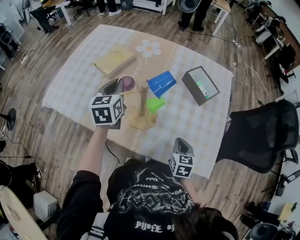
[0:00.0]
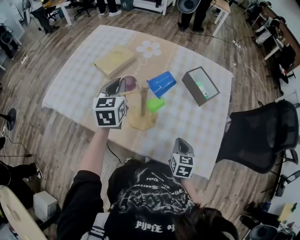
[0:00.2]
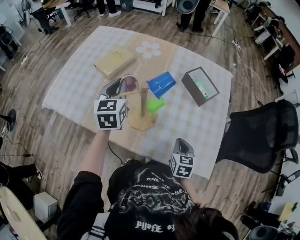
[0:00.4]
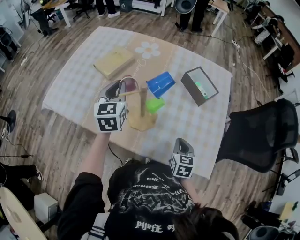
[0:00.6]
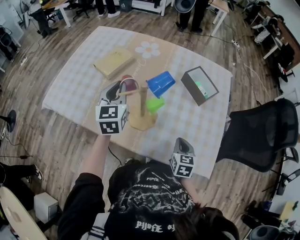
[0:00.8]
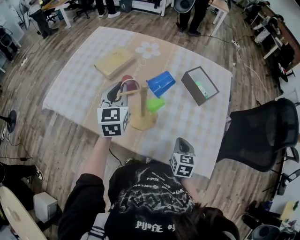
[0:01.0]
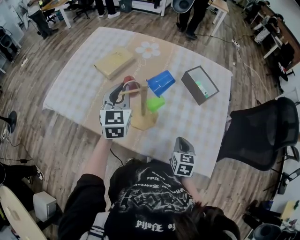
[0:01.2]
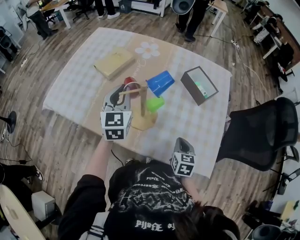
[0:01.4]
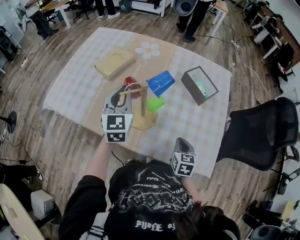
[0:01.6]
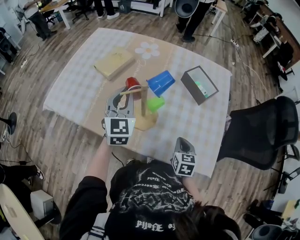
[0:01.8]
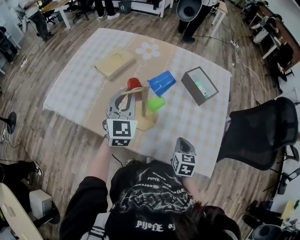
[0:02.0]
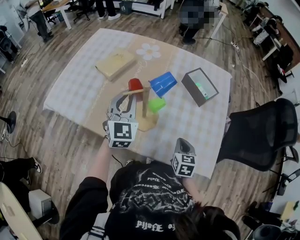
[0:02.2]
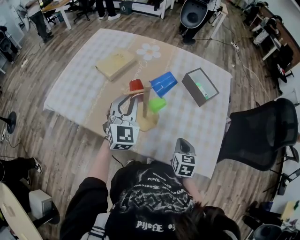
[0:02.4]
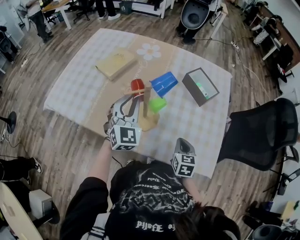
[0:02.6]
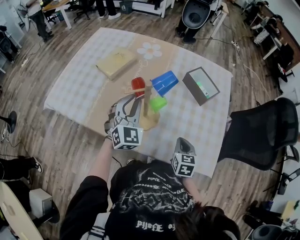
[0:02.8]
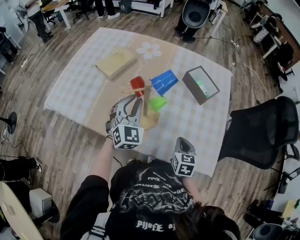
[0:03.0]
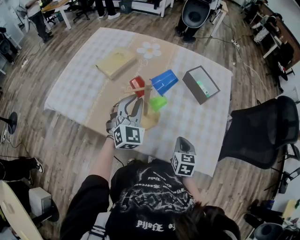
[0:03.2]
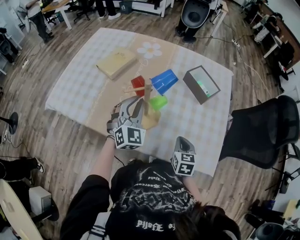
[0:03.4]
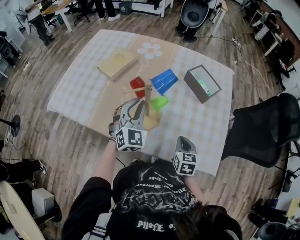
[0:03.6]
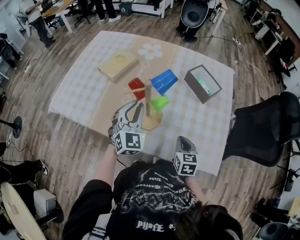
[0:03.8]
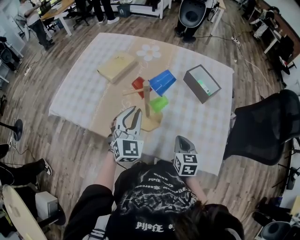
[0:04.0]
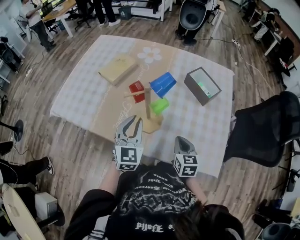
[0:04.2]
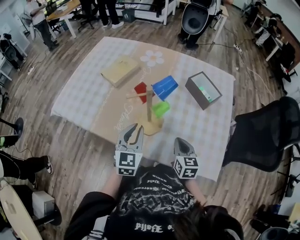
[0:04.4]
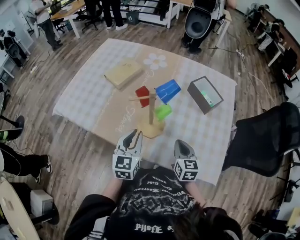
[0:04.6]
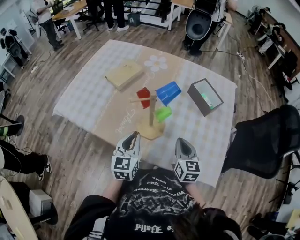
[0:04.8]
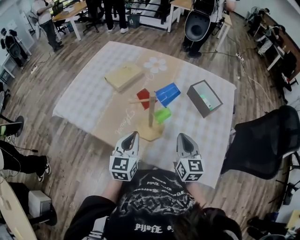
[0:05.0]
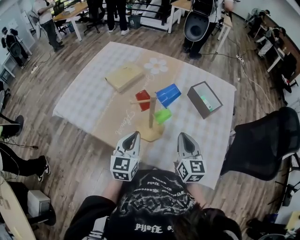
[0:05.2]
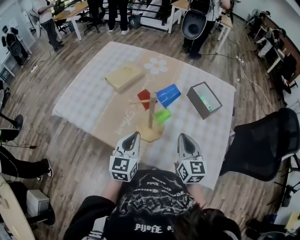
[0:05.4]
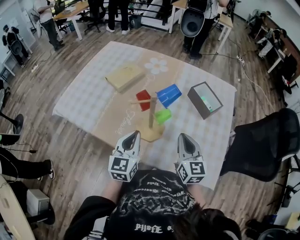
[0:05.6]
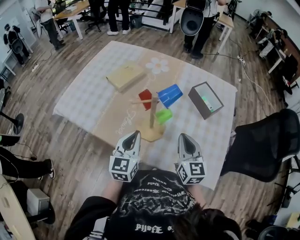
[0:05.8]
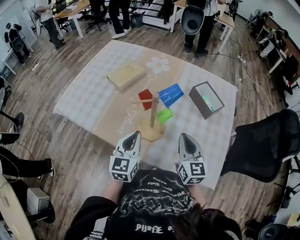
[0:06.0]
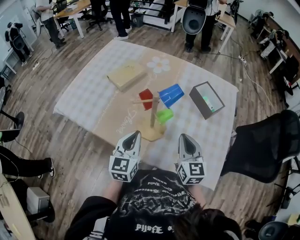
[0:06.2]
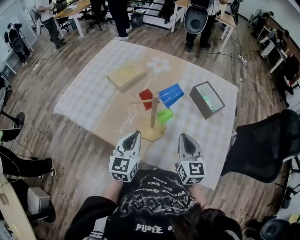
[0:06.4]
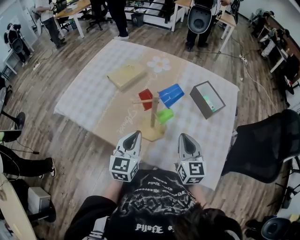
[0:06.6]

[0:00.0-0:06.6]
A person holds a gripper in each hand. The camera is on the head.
0:00.0 to 0:01.6: The left gripper shifts by about 5 cm, and turns by roughly 20 degrees.
0:01.6 to 0:03.2: The left gripper shifts by roughly 5 cm, and swivels about 30 degrees.
0:03.2 to 0:05.0: The right gripper shifts approximately 10 cm upward, and rotates roughly 30 degrees. Meanwhile the left gripper goes approximately 10 cm backward, and rolls counterclockwise, seen from behind, by approximately 40 degrees.
0:05.0 to 0:06.6: The grippers make only small movements.

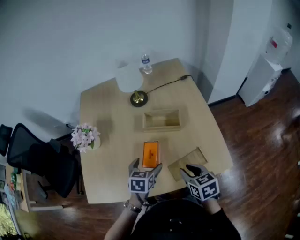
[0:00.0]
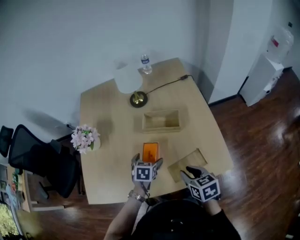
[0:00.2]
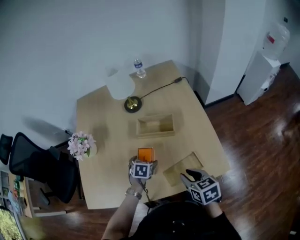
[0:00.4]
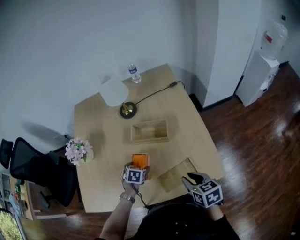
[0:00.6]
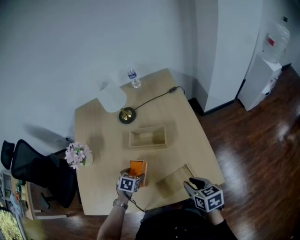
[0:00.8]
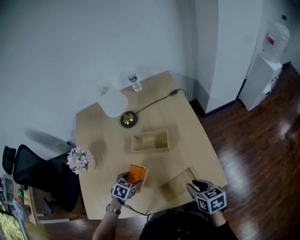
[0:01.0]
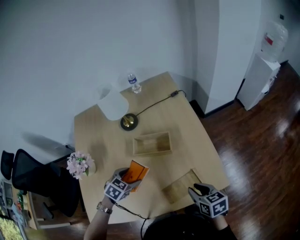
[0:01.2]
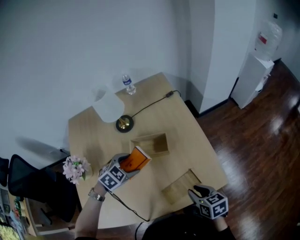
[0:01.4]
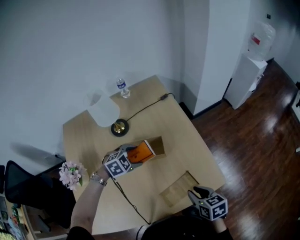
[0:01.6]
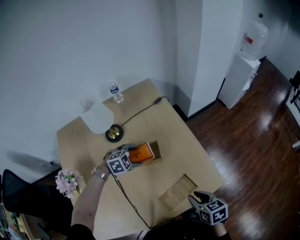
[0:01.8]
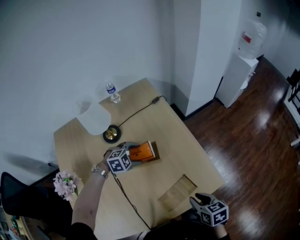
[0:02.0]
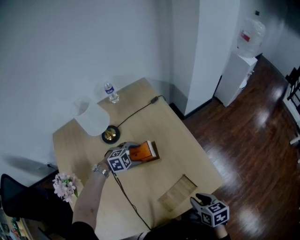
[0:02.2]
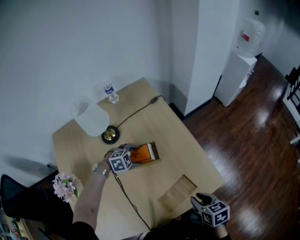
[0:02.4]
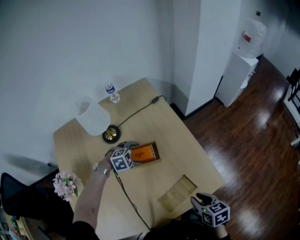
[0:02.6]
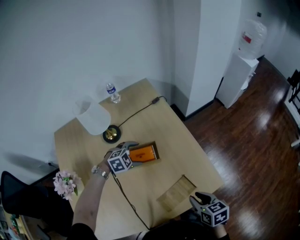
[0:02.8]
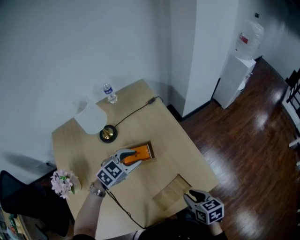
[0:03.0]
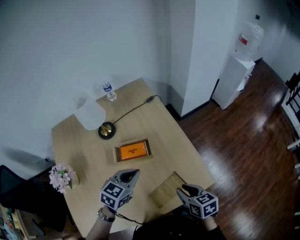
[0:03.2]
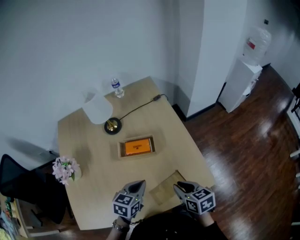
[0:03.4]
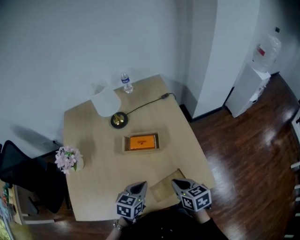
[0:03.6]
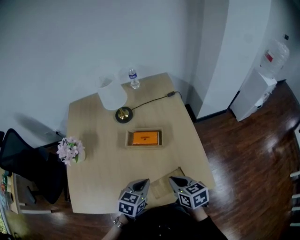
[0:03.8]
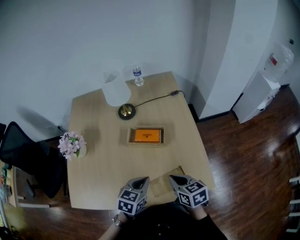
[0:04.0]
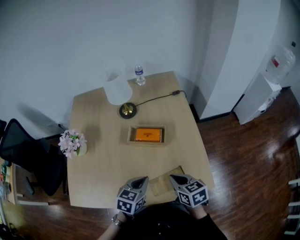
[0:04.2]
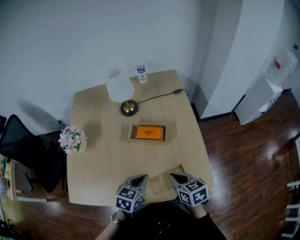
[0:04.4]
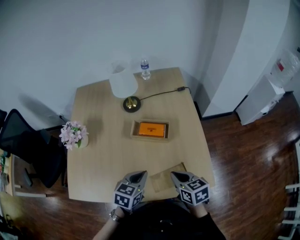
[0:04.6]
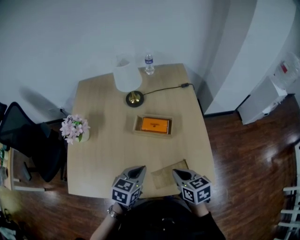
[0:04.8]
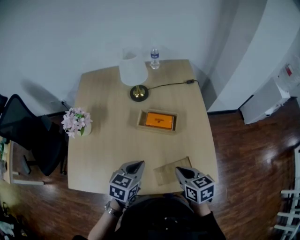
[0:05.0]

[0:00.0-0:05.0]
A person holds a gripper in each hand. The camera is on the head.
0:00.0 to 0:01.6: The right gripper changes place by about 10 cm, while the left gripper moves about 10 cm downward and comes back, and twists some 60 degrees clockwise, seen from behind.
0:01.6 to 0:03.4: The left gripper is displaced backward and to the right by some 15 cm, twists roughly 50 degrees counterclockwise, seen from behind, and closes up.
0:03.4 to 0:05.0: The left gripper goes approximately 5 cm to the left, while the right gripper shifts by roughly 5 cm.

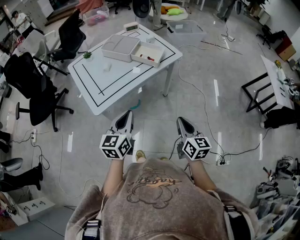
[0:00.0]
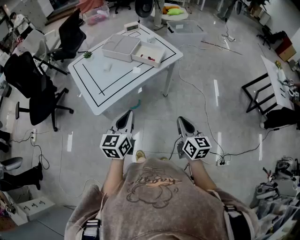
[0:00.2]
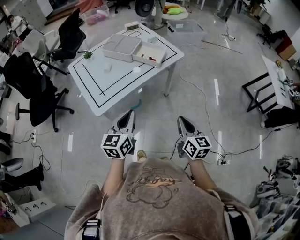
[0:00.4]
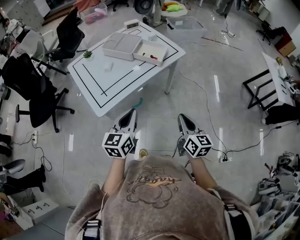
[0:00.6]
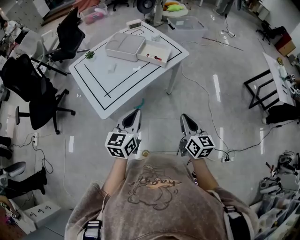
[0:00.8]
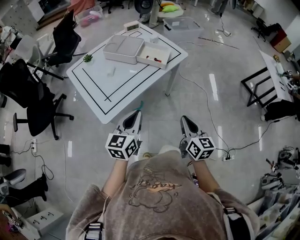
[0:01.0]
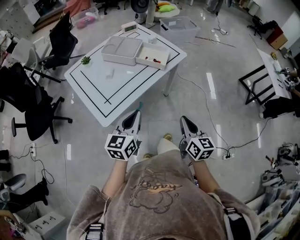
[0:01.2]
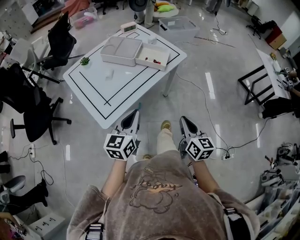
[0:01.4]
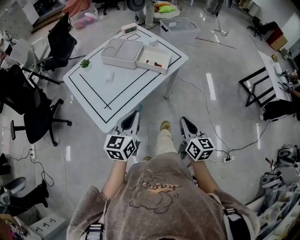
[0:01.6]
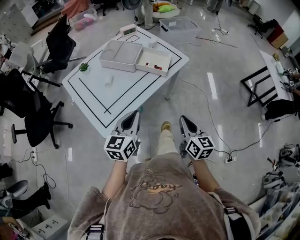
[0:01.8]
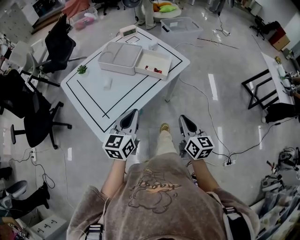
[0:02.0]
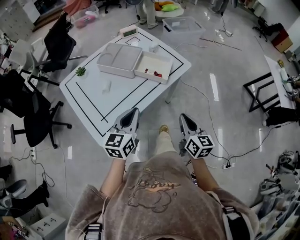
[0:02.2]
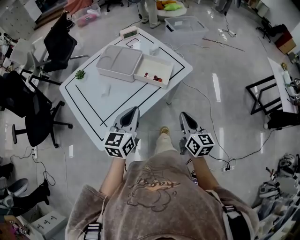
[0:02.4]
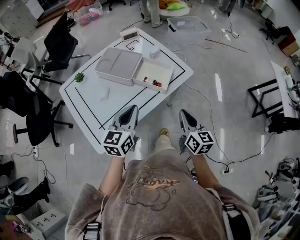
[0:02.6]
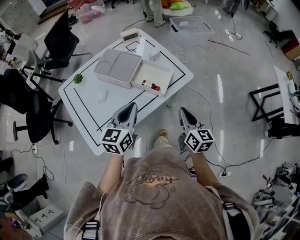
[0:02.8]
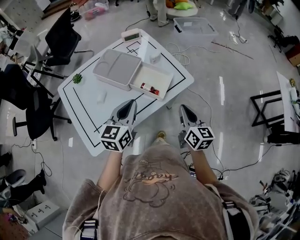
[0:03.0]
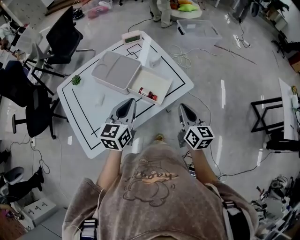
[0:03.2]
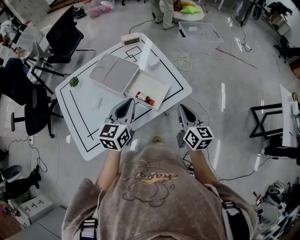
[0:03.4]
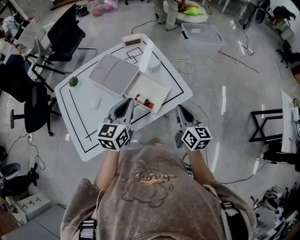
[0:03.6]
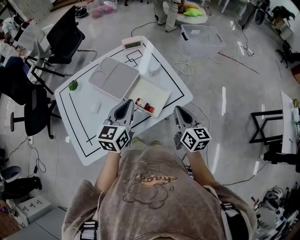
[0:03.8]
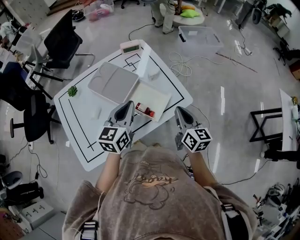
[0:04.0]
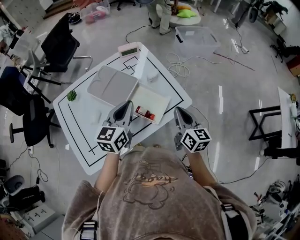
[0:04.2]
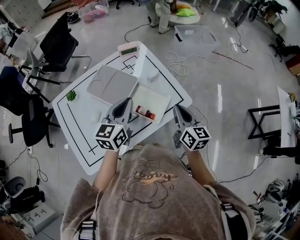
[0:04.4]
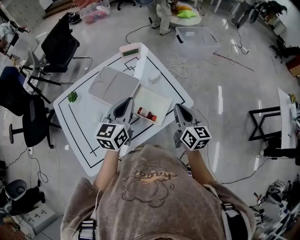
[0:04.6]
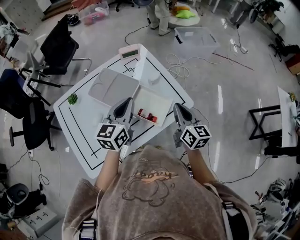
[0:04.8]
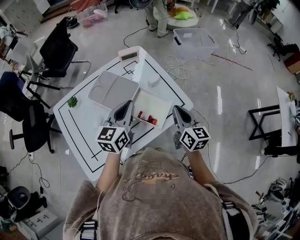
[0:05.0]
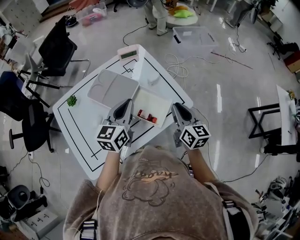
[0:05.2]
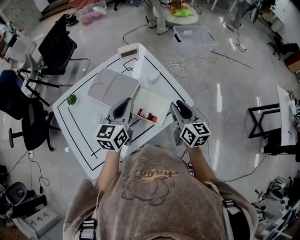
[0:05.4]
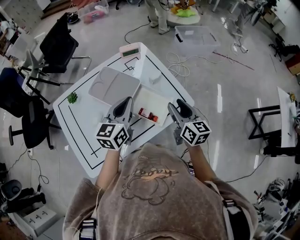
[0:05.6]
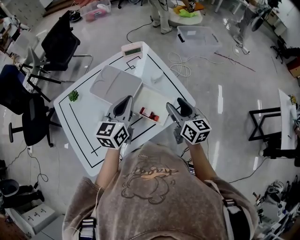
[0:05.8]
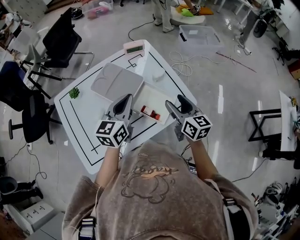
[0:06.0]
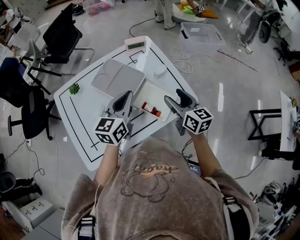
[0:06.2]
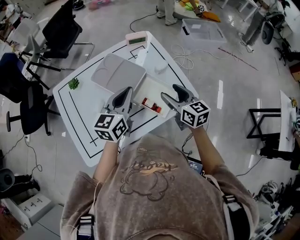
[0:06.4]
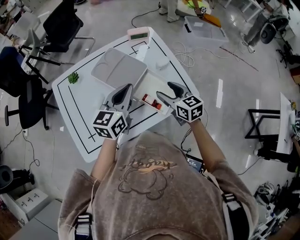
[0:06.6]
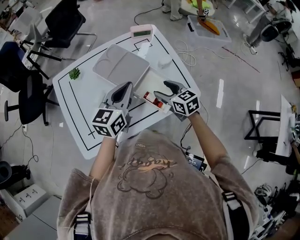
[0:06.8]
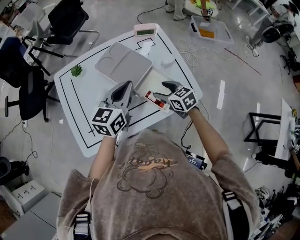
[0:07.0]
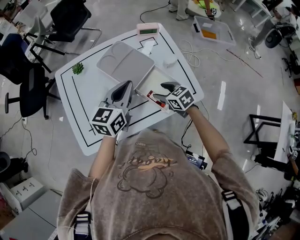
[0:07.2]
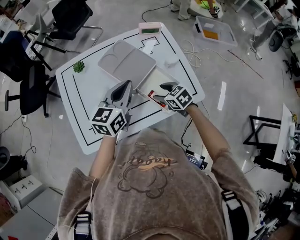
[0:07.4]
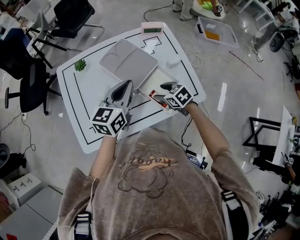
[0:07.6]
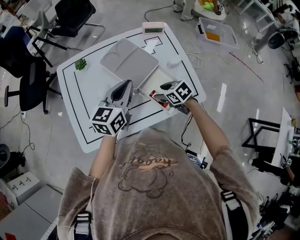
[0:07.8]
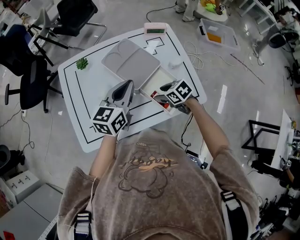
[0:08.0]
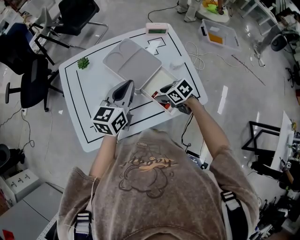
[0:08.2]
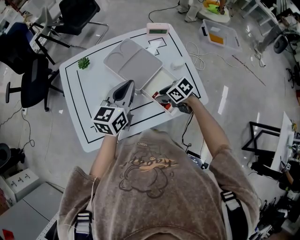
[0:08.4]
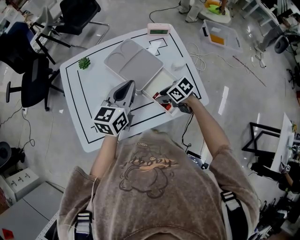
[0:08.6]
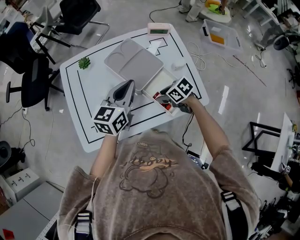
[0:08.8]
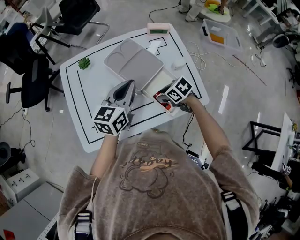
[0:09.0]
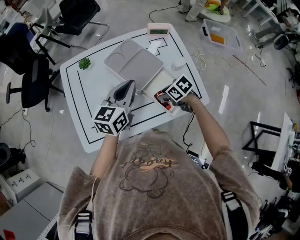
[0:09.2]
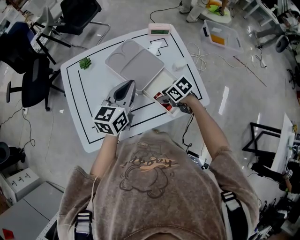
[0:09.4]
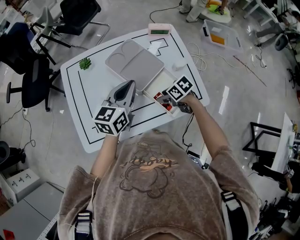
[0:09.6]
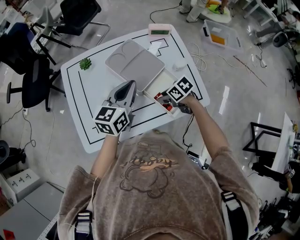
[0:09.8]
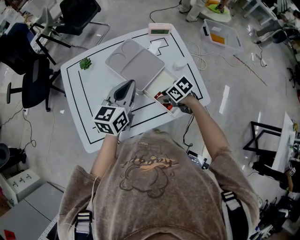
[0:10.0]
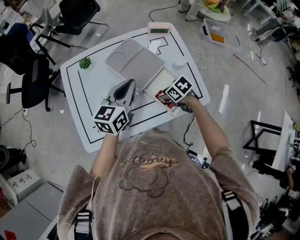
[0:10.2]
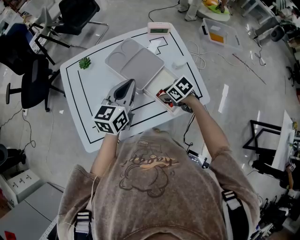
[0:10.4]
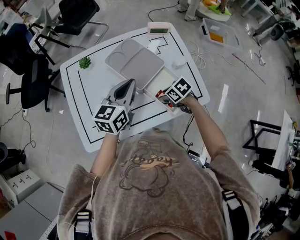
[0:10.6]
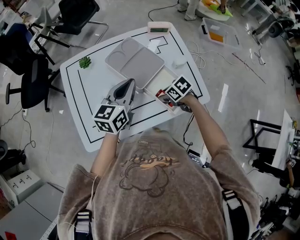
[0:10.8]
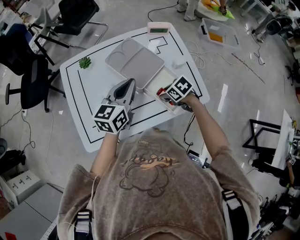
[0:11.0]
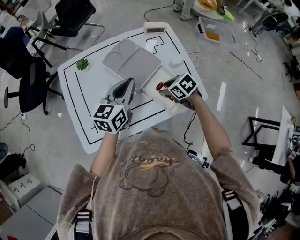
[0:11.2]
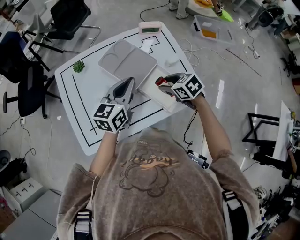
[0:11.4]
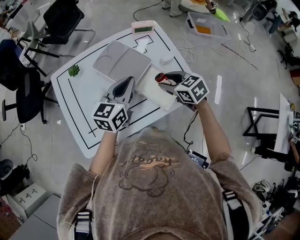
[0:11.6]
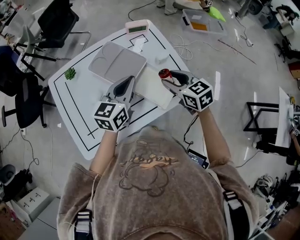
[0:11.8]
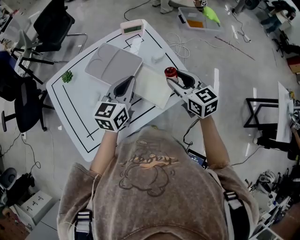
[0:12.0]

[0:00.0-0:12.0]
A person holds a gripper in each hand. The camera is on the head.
0:00.0 to 0:01.6: The right gripper travels to the left and forward by about 10 cm. Meanwhile the left gripper shifts roughly 10 cm forward and to the left.
0:01.6 to 0:03.0: Both grippers move forward, about 25 cm.
0:03.0 to 0:04.4: The two grippers go some 15 cm forward.
0:04.4 to 0:06.0: The right gripper ends up about 5 cm from where it was, and opens its fingers.
0:06.0 to 0:07.6: The left gripper changes place by about 5 cm; the right gripper goes about 15 cm downward, and angles its fingers downward, by approximately 40 degrees.
0:09.0 to 0:10.4: The grippers make only small movements.
0:10.4 to 0:12.0: The left gripper shifts by roughly 10 cm, while the right gripper travels upward by approximately 20 cm, and points its fingers about 40 degrees further upward.
